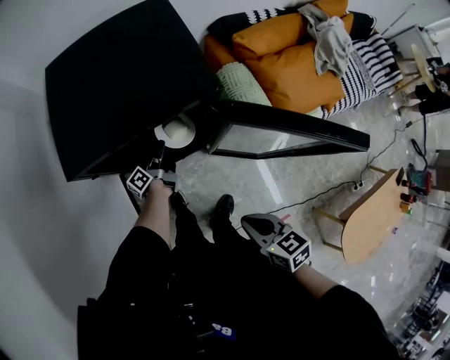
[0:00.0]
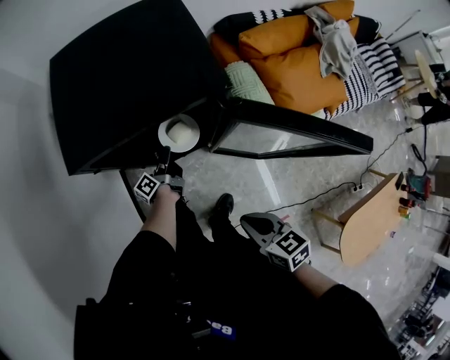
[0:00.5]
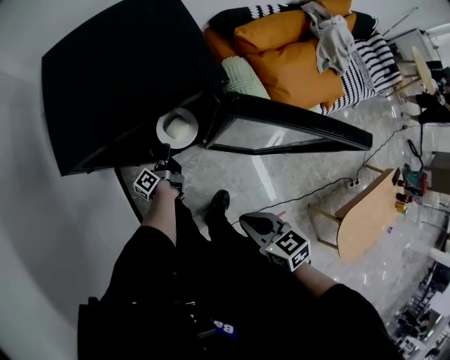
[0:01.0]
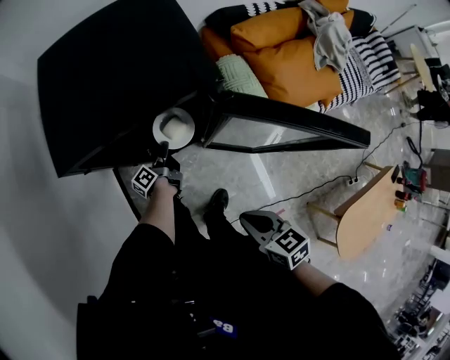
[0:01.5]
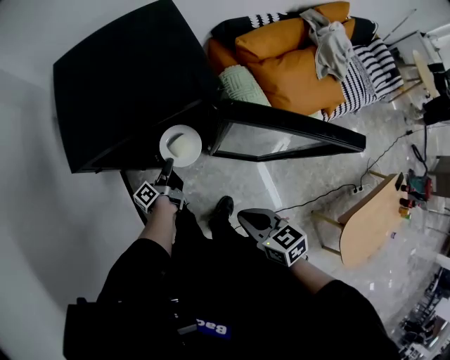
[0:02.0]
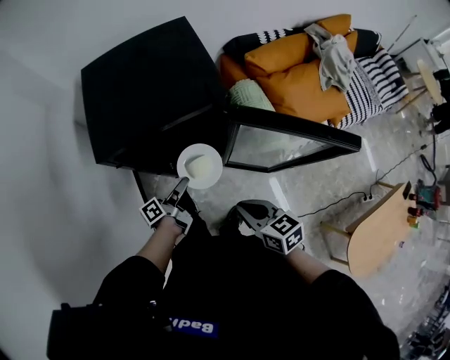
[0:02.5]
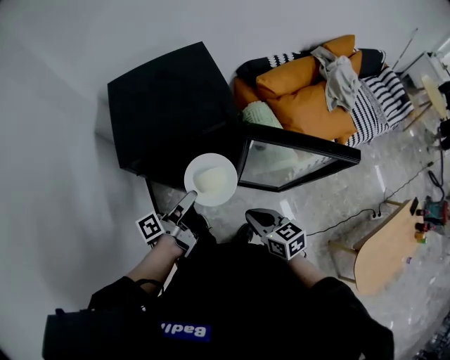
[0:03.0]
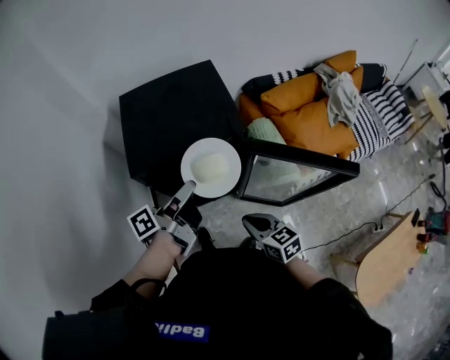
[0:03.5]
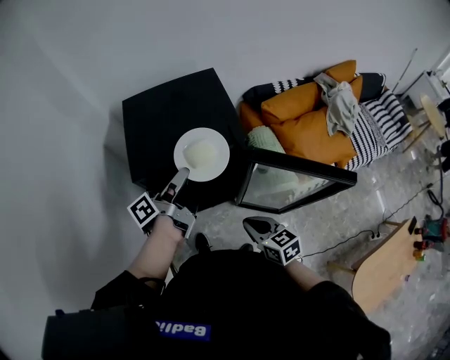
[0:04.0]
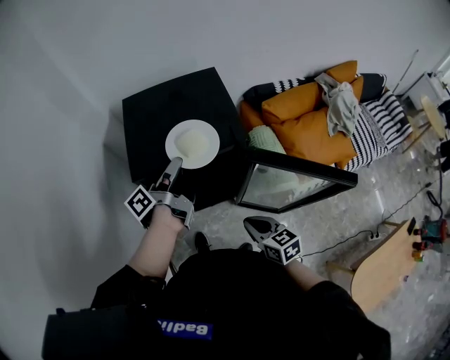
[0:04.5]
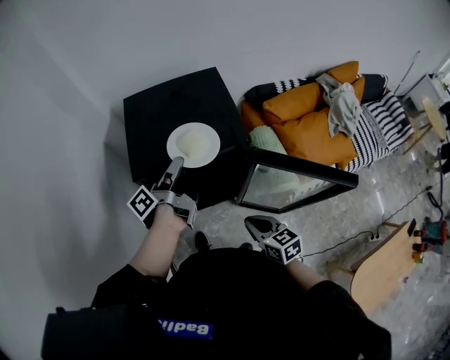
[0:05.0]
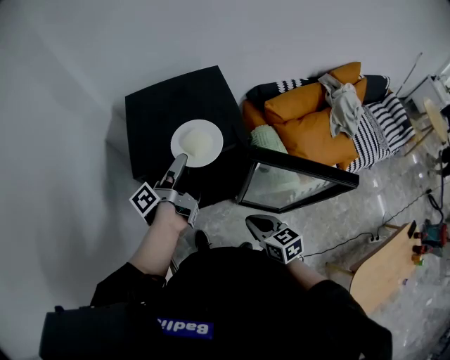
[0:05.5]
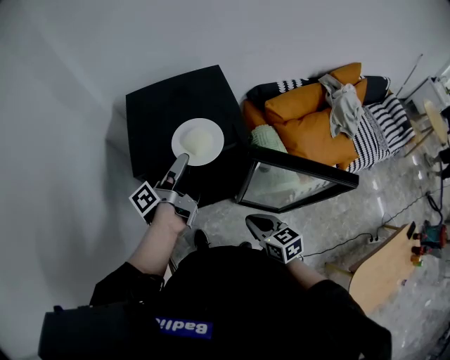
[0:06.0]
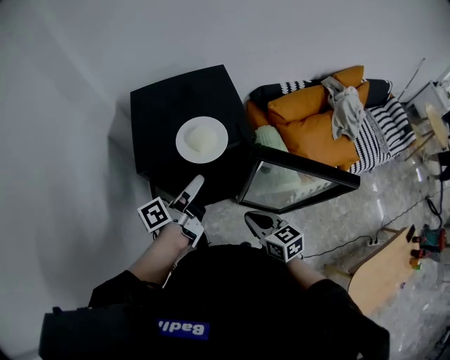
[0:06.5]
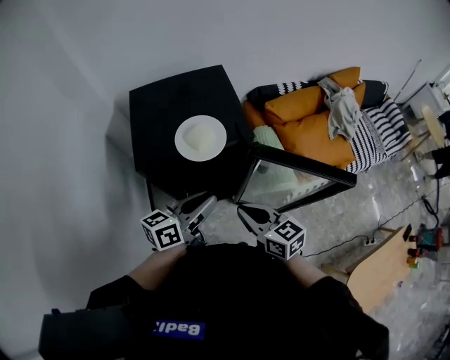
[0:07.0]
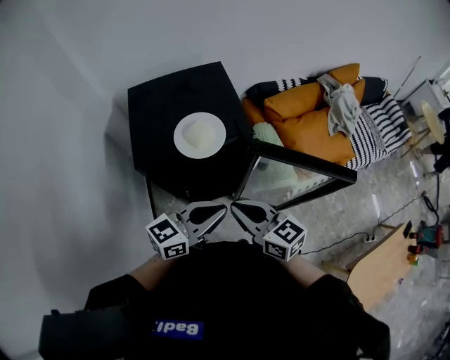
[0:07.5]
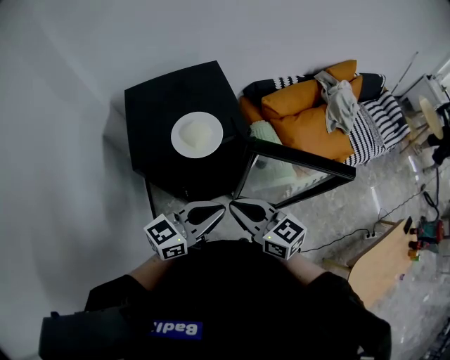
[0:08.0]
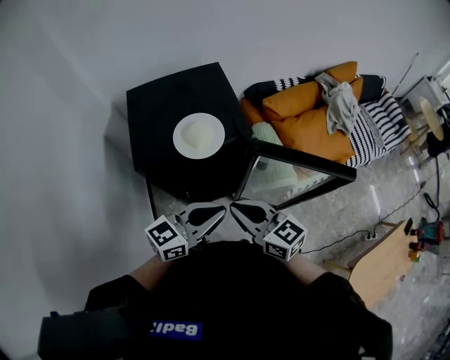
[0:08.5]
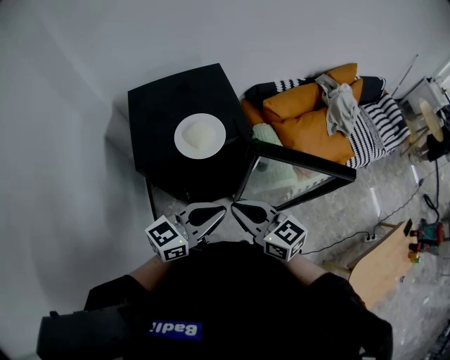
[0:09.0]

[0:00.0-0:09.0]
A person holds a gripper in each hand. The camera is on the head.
0:00.0 to 0:02.0: The left gripper travels backward by about 5 cm.
0:02.0 to 0:04.5: The left gripper heads upward, covering about 35 cm, while the right gripper is displaced forward by about 5 cm.
0:04.5 to 0:07.0: The right gripper goes approximately 10 cm upward. Meanwhile the left gripper goes some 15 cm backward and to the right, and rotates around the line of its fingers by about 40 degrees, clockwise from behind.
0:07.0 to 0:09.0: The left gripper shifts by roughly 5 cm, and turns by approximately 30 degrees.

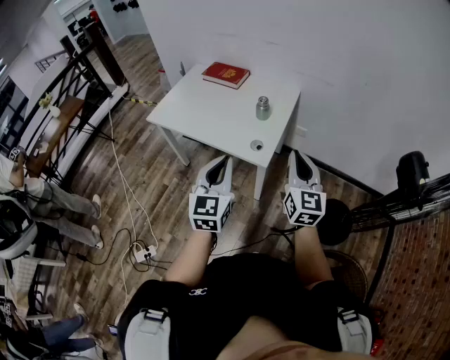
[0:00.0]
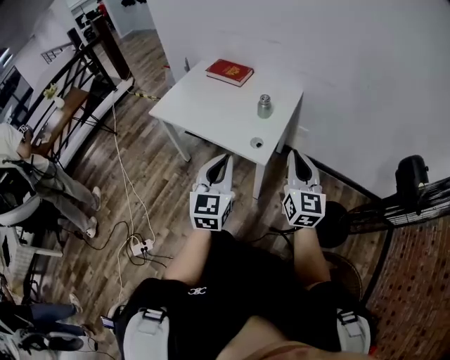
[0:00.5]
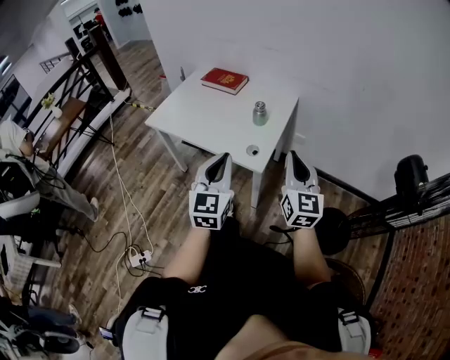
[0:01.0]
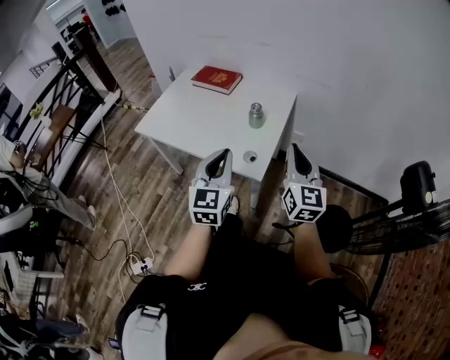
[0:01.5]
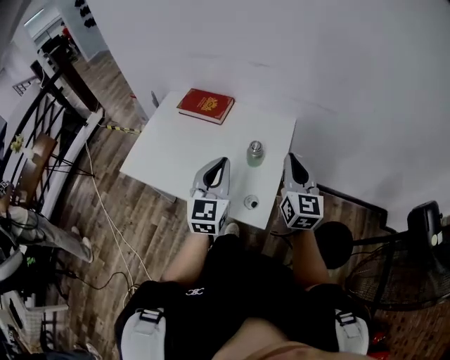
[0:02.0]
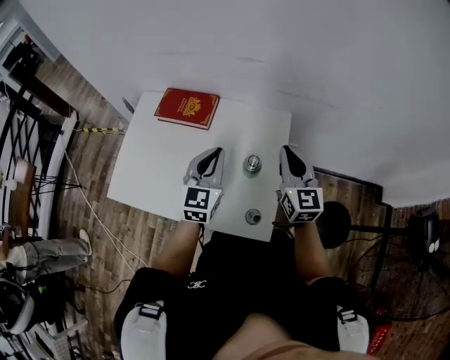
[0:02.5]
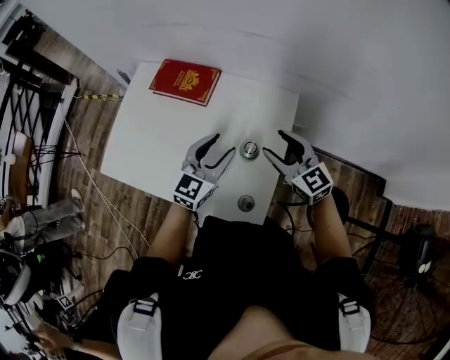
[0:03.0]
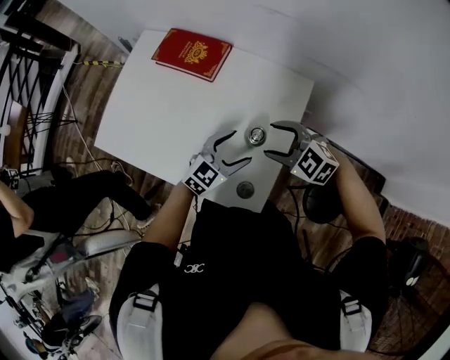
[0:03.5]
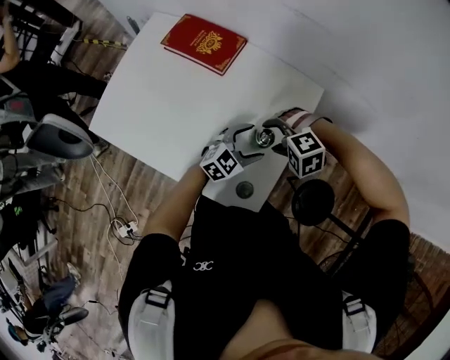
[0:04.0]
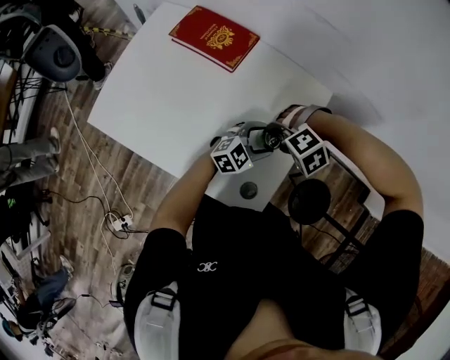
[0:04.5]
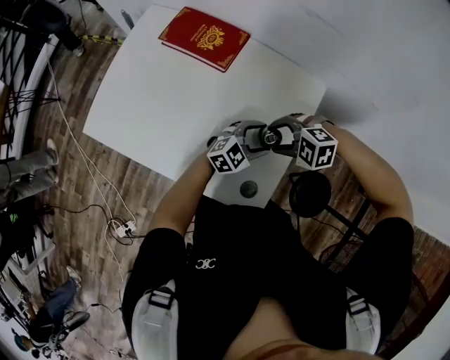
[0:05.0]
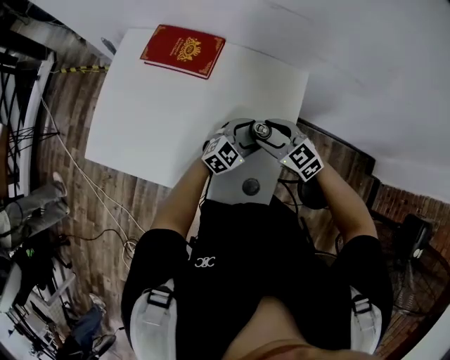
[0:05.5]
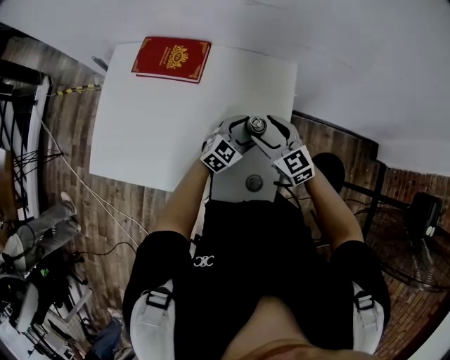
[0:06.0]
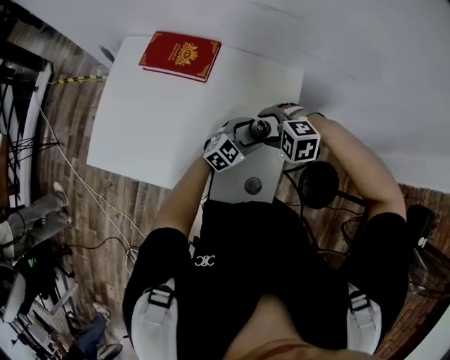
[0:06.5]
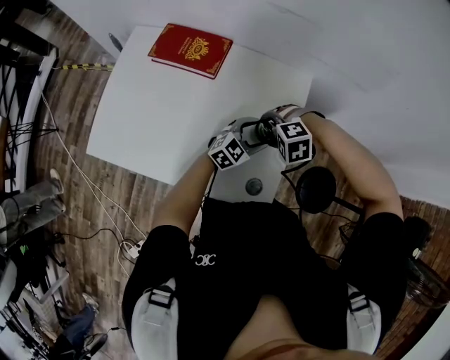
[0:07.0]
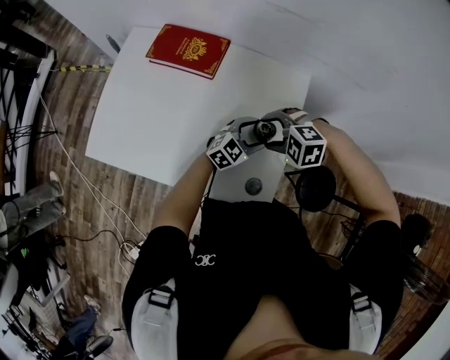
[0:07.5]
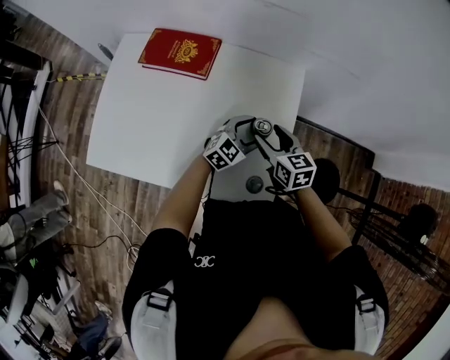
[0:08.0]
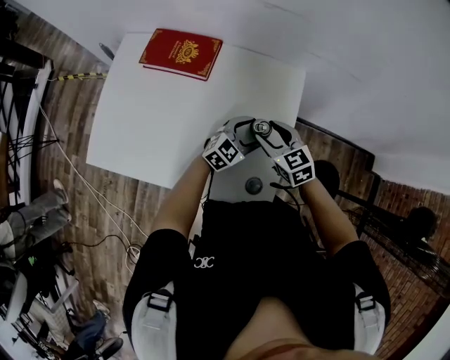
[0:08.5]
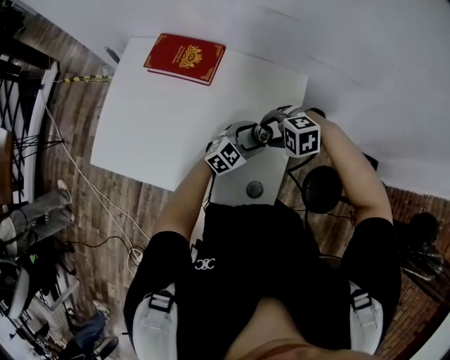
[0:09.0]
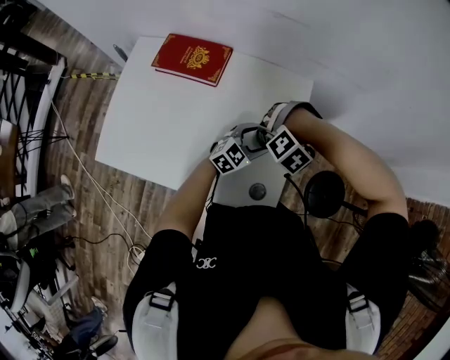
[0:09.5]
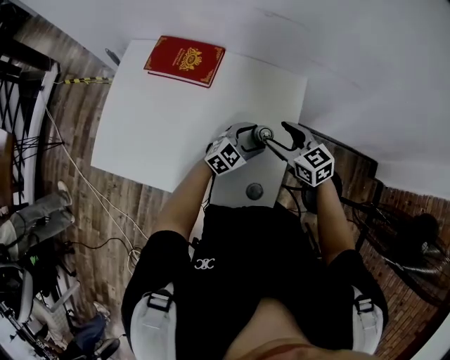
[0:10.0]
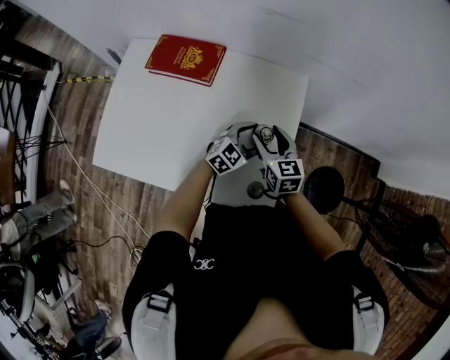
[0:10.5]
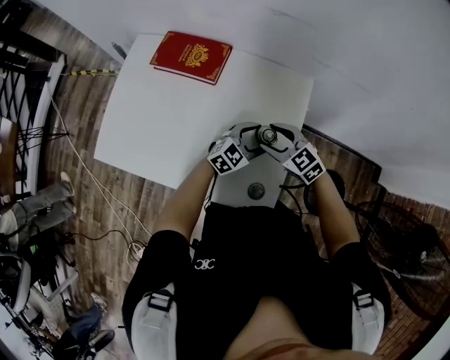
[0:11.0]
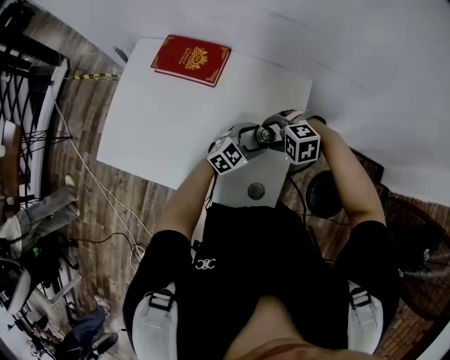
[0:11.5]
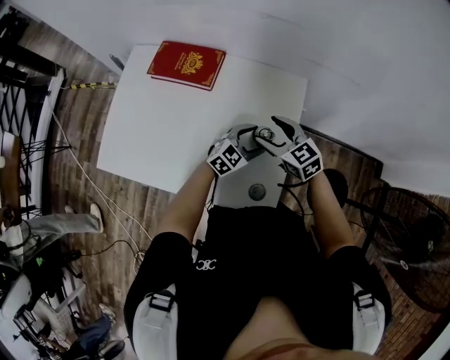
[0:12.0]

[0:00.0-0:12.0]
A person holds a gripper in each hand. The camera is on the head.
0:00.0 to 0:02.0: Both grippers move forward, approximately 25 cm.
0:02.0 to 0:04.0: Both grippers travel together downward, approximately 20 cm. The right gripper angles its fingers downward, by some 70 degrees, and opens its fingers; the left gripper rotates about 50 degrees, and opens its fingers.
0:04.0 to 0:06.0: The right gripper angles its fingers upward, by roughly 50 degrees.
0:06.0 to 0:08.0: The right gripper rotates some 30 degrees.
0:08.0 to 0:10.0: The right gripper rotates roughly 20 degrees.

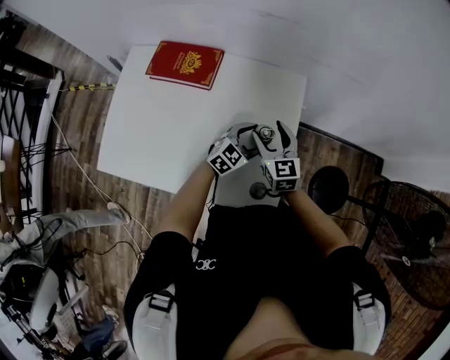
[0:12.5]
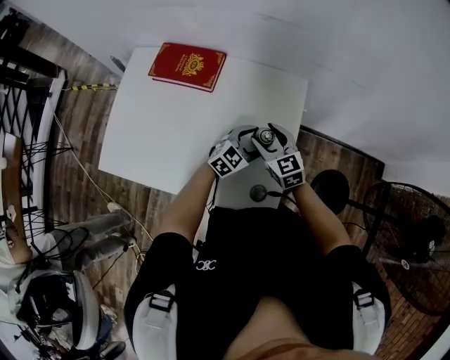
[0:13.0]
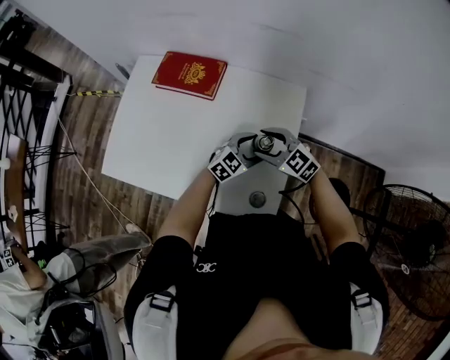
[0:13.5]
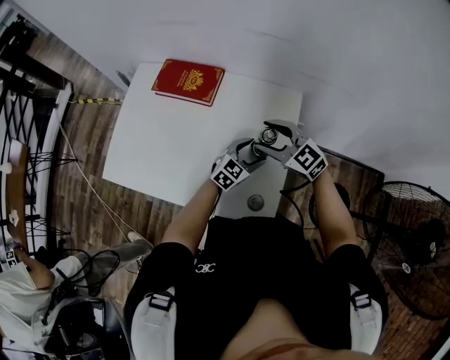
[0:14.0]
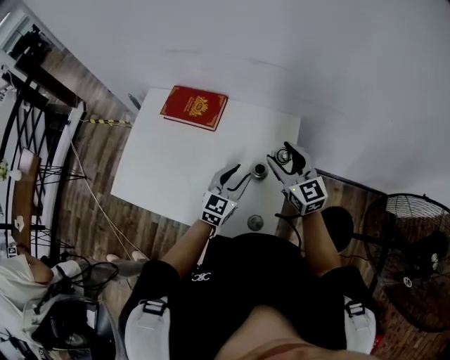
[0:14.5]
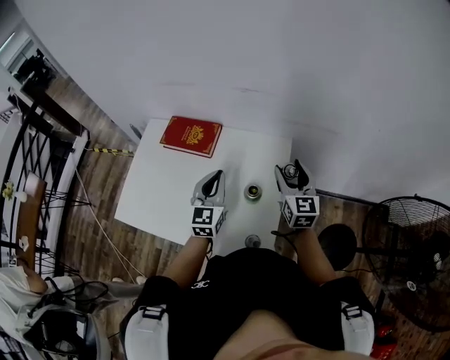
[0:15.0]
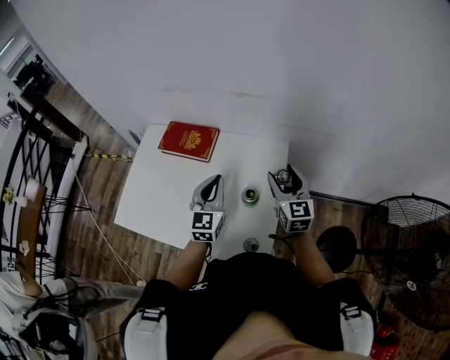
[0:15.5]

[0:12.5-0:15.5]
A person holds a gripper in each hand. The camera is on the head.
0:12.5 to 0:14.0: The right gripper goes roughly 5 cm upward, and changes its angle by roughly 40 degrees.
0:14.0 to 0:15.5: The left gripper is displaced upward and to the left by approximately 20 cm, changes its angle by roughly 40 degrees, and closes up. The right gripper shifts about 15 cm to the right and upward, and swivels roughly 50 degrees.

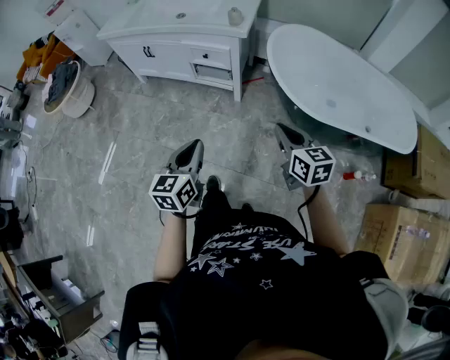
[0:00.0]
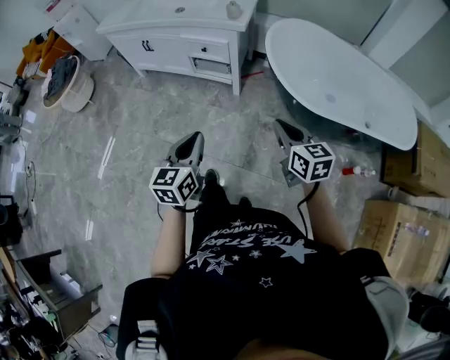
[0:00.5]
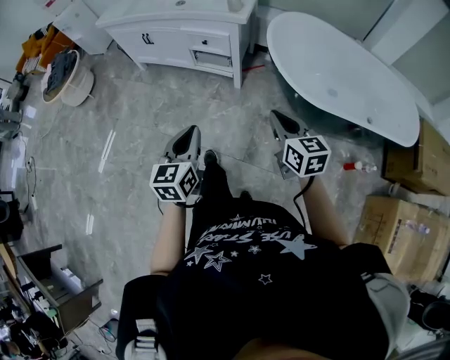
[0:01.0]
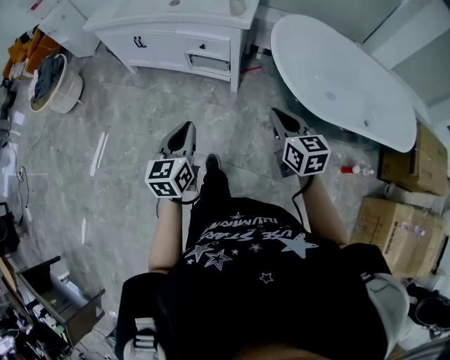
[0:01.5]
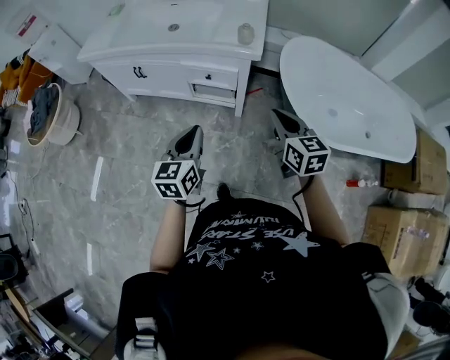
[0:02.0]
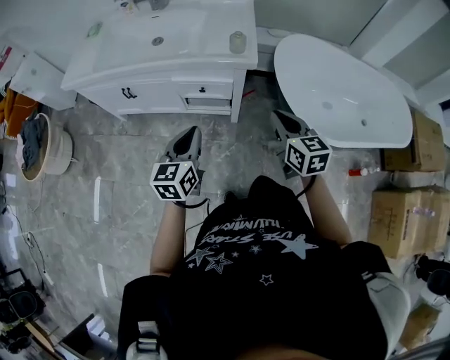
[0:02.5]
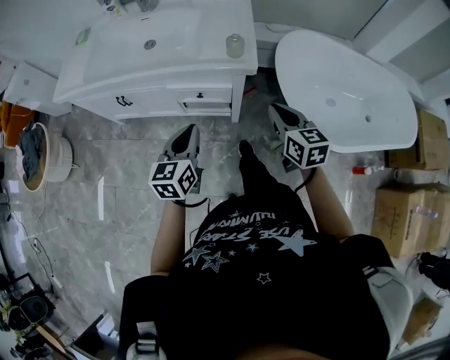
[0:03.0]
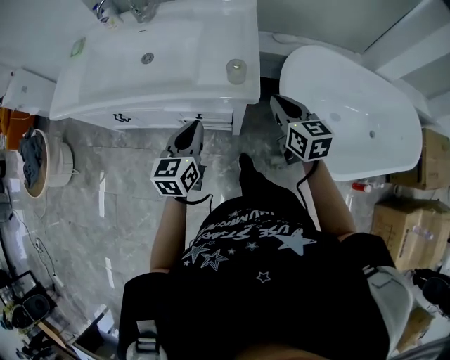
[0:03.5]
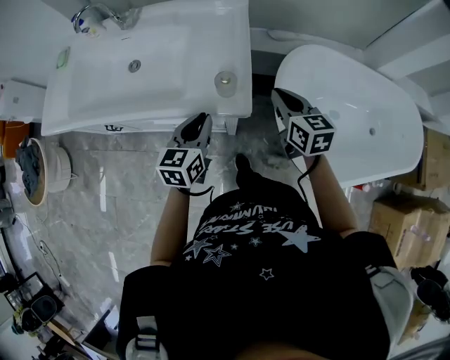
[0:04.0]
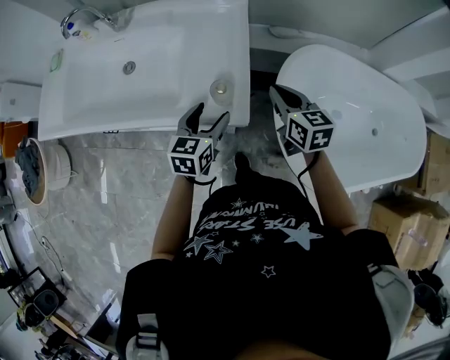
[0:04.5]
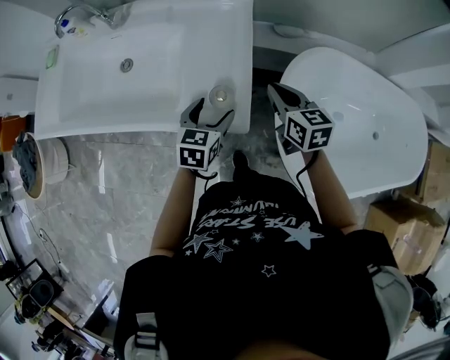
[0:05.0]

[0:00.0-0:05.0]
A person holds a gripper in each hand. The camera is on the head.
0:00.0 to 0:02.5: The left gripper moves forward, approximately 35 cm. Meanwhile the right gripper heads forward and to the left, covering about 30 cm.
0:02.5 to 0:05.0: The pair of grippers is taken forward, approximately 40 cm. The left gripper rotates some 20 degrees, and opens.
